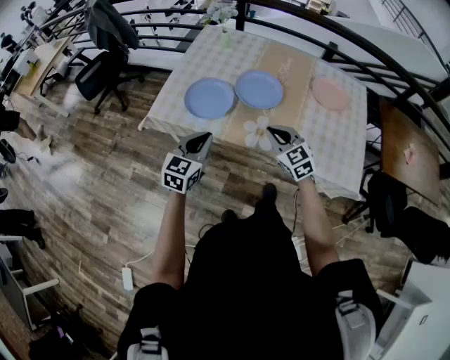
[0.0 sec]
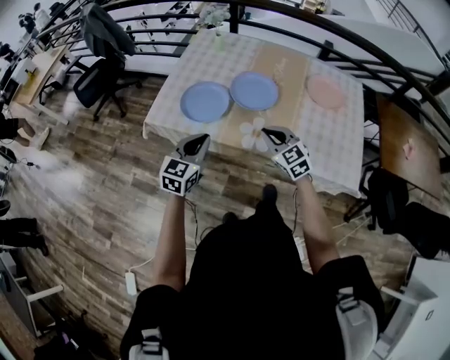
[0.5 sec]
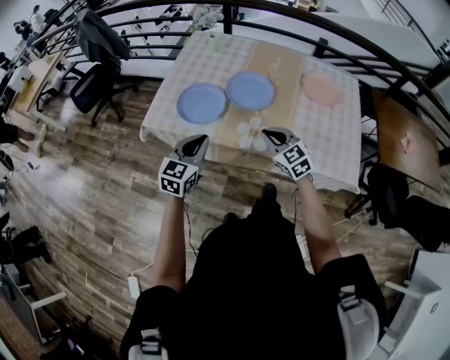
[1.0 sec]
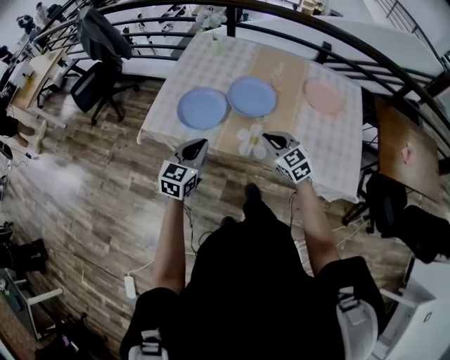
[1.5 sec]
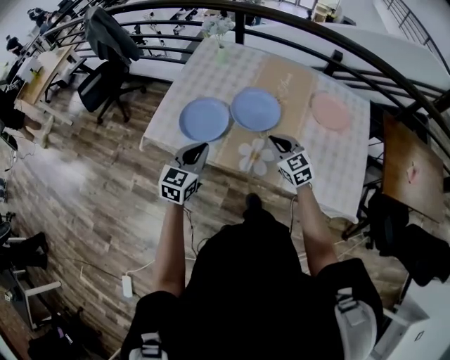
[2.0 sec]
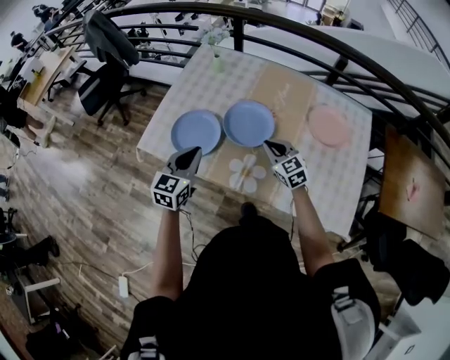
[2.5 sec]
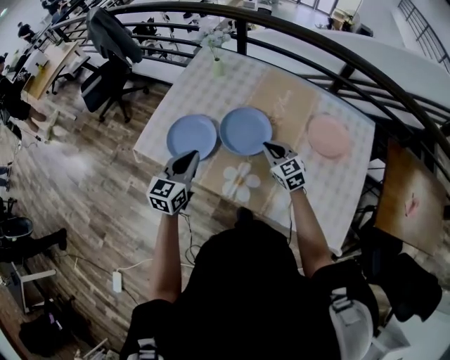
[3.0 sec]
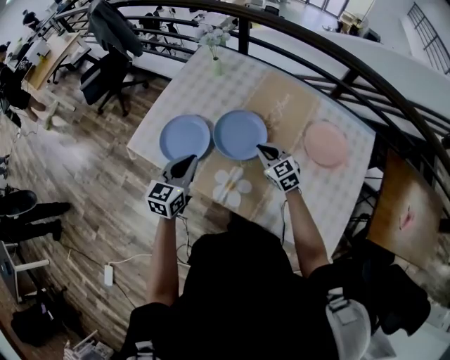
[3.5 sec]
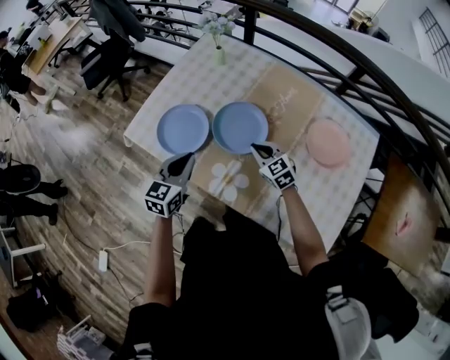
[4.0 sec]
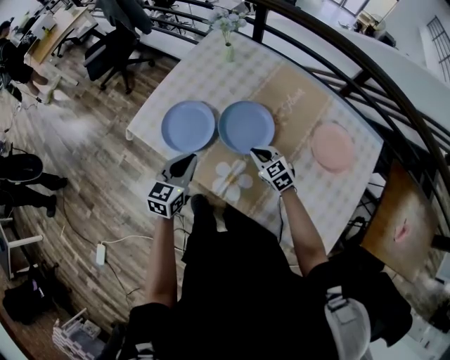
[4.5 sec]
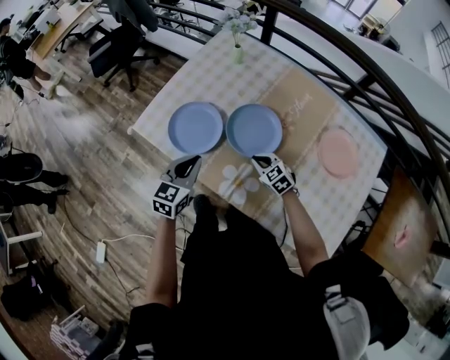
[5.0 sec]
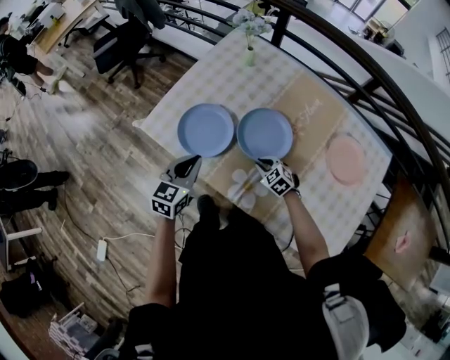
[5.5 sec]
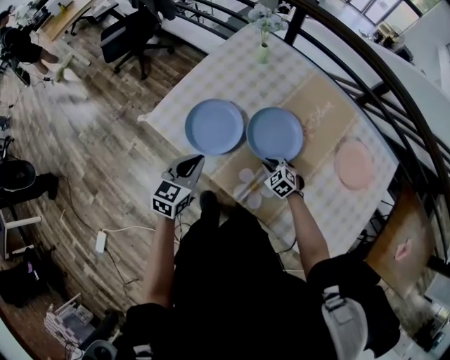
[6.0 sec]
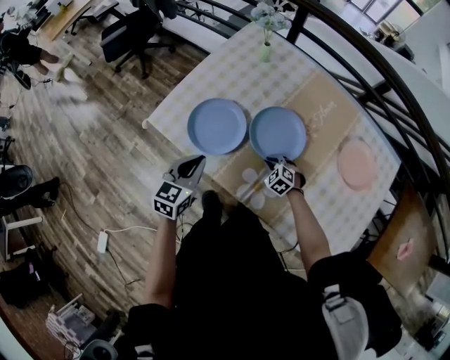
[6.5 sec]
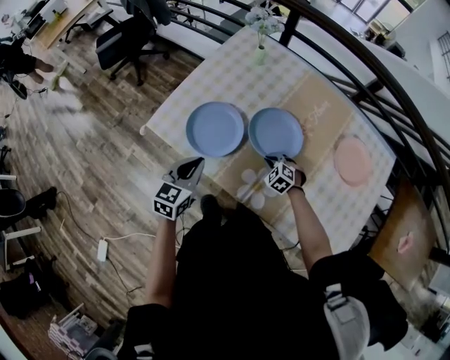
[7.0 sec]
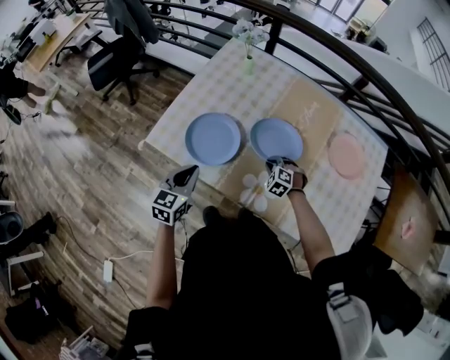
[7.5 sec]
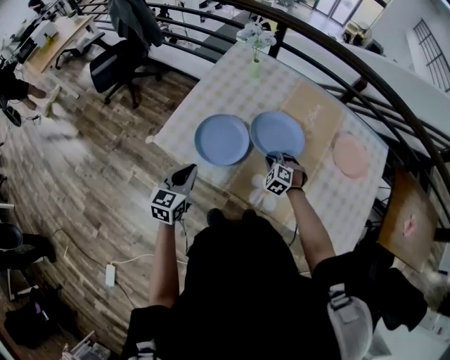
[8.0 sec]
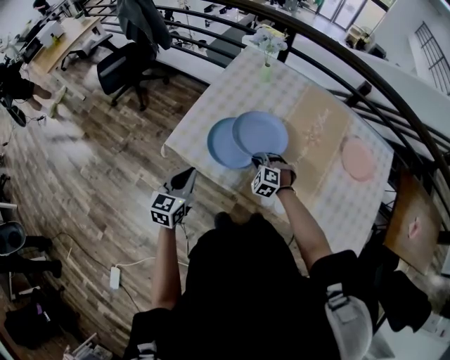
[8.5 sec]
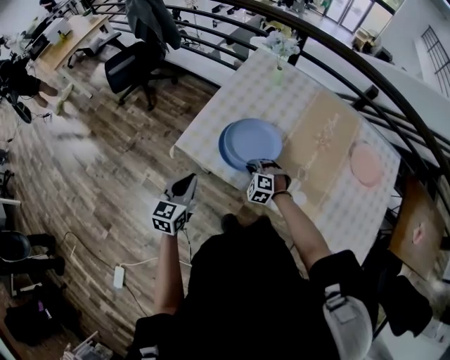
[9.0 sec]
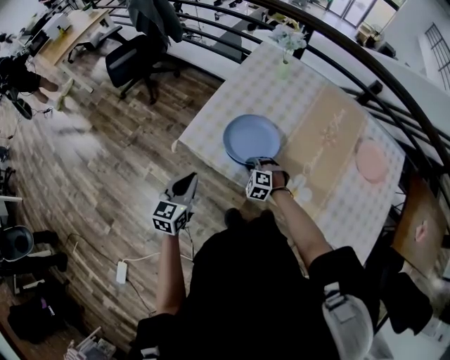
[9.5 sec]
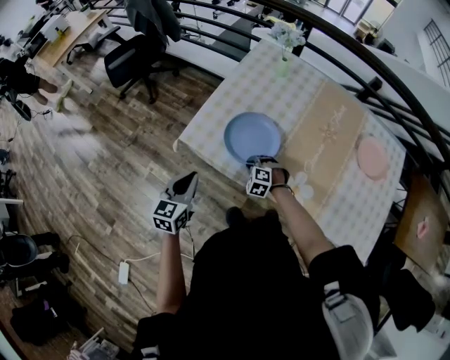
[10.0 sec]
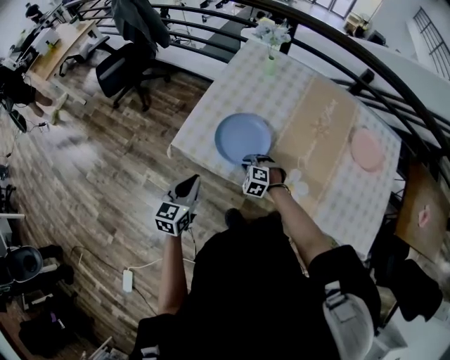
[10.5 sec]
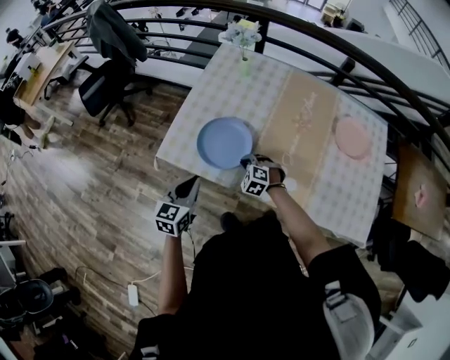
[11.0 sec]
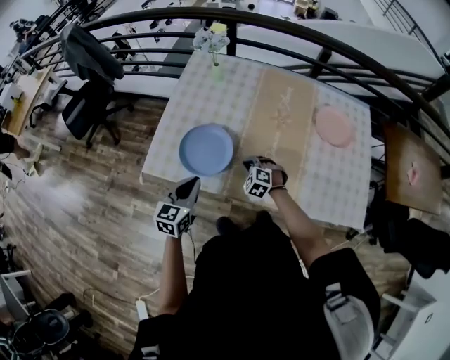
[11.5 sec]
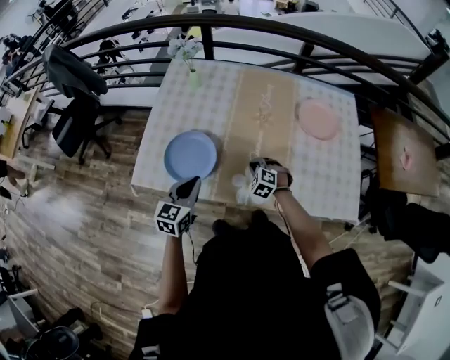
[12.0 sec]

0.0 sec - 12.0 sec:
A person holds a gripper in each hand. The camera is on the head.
0.0 sec - 2.0 sec: The left gripper is displaced forward by roughly 5 cm. The right gripper travels forward and to the right by some 10 cm.
2.0 sec - 4.0 sec: The right gripper travels forward, downward and to the right by some 15 cm. The left gripper heads to the right and forward, covering approximately 15 cm.
4.0 sec - 6.0 sec: The left gripper is displaced to the left by approximately 10 cm, while the right gripper moves downward and to the left, some 15 cm, and changes its angle by approximately 30 degrees.
6.0 sec - 8.0 sec: The left gripper goes some 10 cm to the left. The right gripper is displaced upward by roughly 5 cm, and turns by roughly 20 degrees.
8.0 sec - 10.0 sec: The left gripper is displaced to the left by some 10 cm; the right gripper shifts about 20 cm to the left.
10.0 sec - 12.0 sec: The right gripper changes place by some 25 cm, and rotates some 30 degrees; the left gripper moves approximately 25 cm, and rotates roughly 20 degrees.

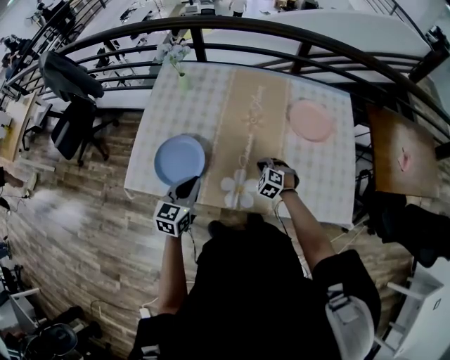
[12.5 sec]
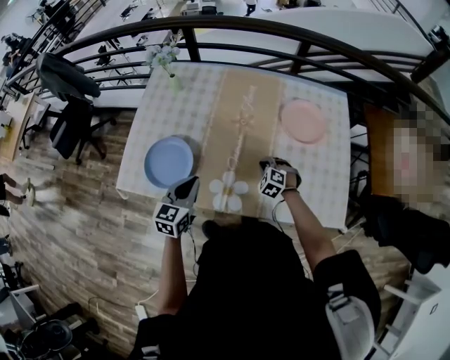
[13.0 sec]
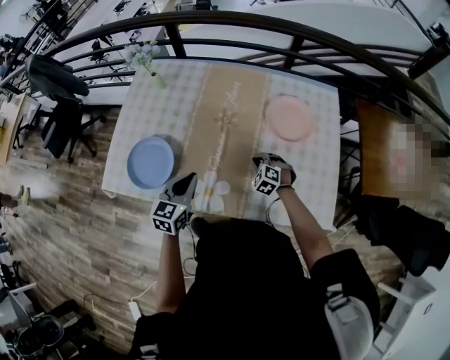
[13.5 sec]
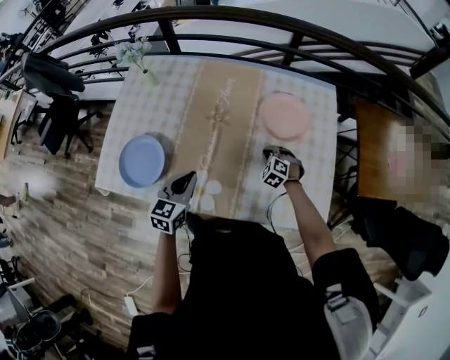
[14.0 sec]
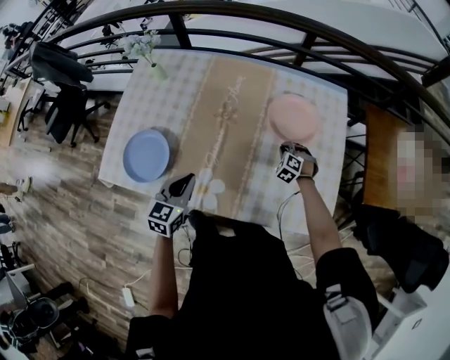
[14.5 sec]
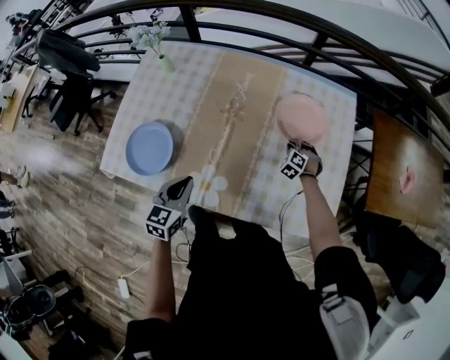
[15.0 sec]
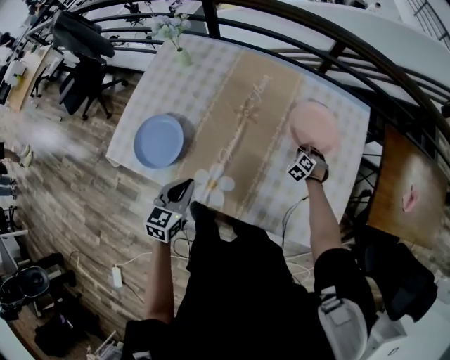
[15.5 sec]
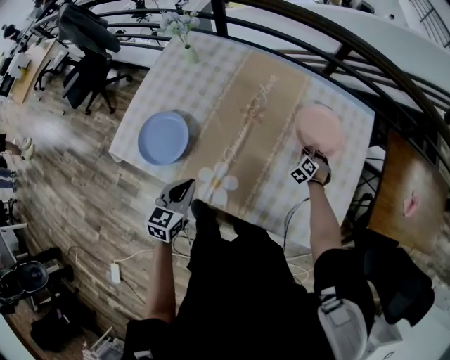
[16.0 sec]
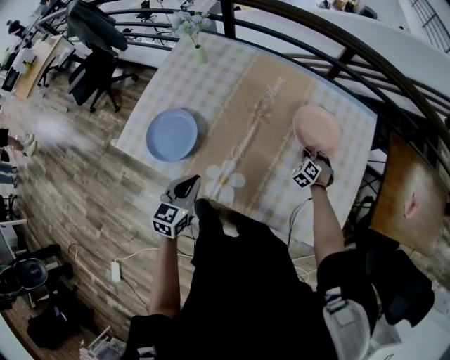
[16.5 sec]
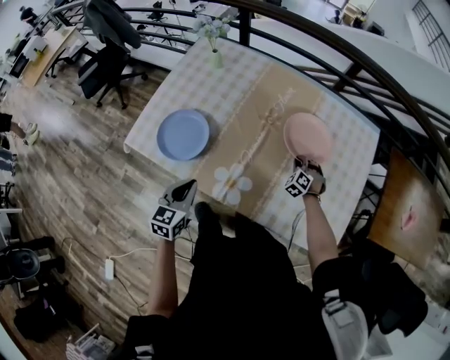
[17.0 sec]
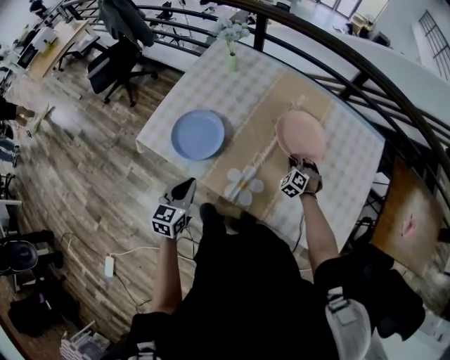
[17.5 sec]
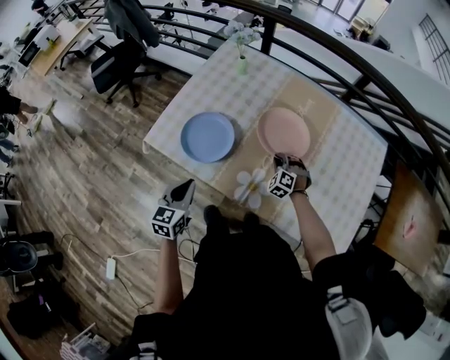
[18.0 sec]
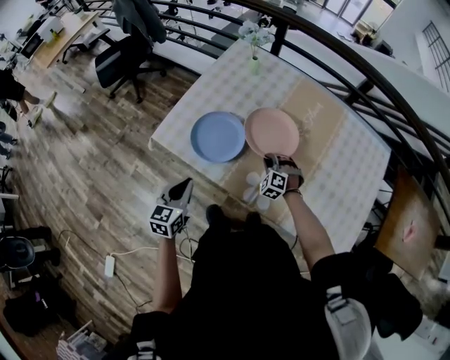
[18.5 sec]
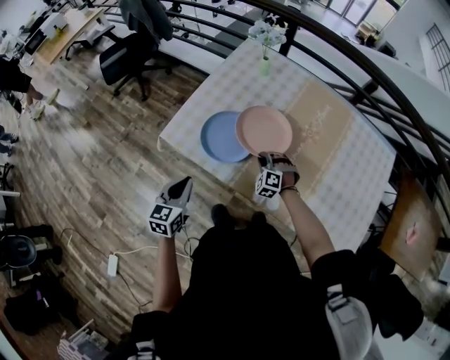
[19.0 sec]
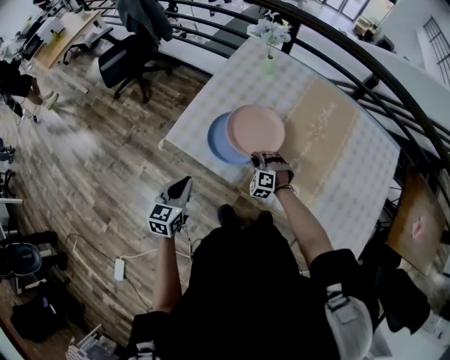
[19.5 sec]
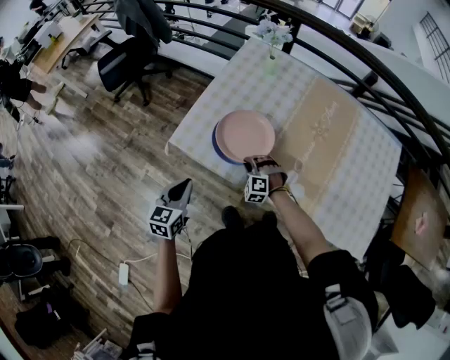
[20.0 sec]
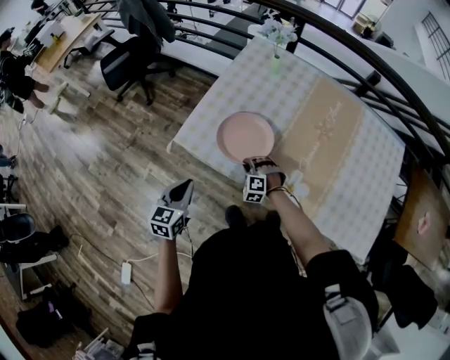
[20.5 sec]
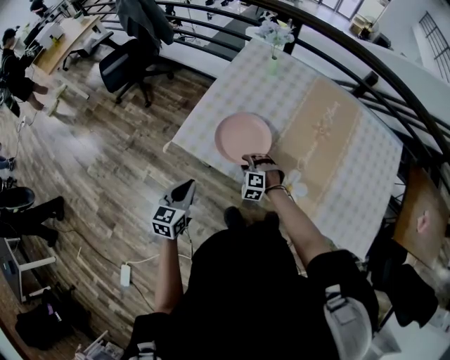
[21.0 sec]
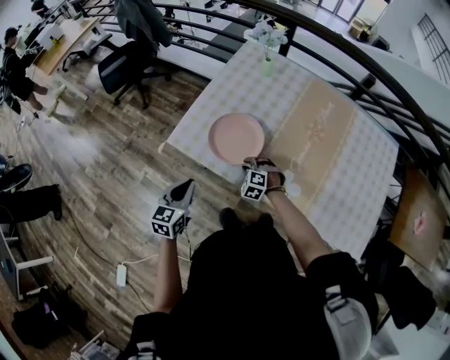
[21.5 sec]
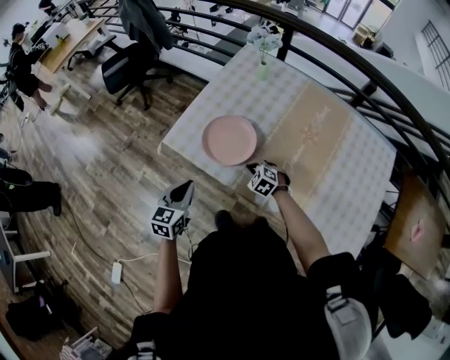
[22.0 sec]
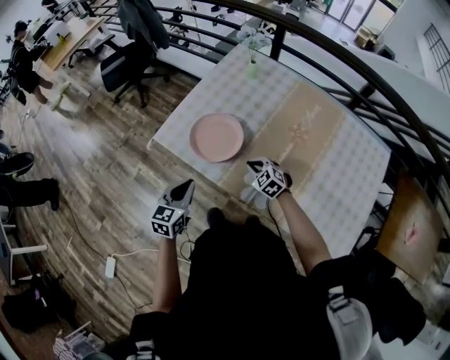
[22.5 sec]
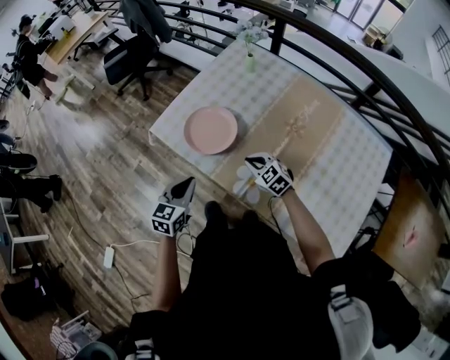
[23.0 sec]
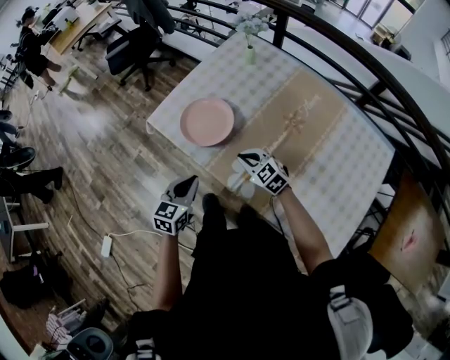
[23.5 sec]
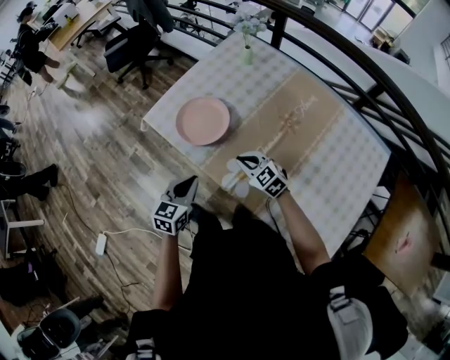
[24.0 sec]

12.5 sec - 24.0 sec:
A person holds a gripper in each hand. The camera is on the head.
12.5 sec - 14.5 sec: The left gripper moves to the right, roughly 15 cm; the right gripper shifts some 30 cm to the right and forward.
14.5 sec - 16.5 sec: The left gripper is displaced backward and to the left by some 10 cm.
16.5 sec - 18.5 sec: The left gripper shifts about 20 cm to the left. Meanwhile the right gripper is displaced to the left by approximately 40 cm, and turns by about 30 degrees.
18.5 sec - 20.0 sec: The left gripper heads to the left, covering about 10 cm. Meanwhile the right gripper moves to the left, some 20 cm.
20.0 sec - 22.0 sec: Both grippers travel together to the right, approximately 5 cm. The right gripper swivels about 30 degrees, and opens and closes again.
22.0 sec - 24.0 sec: The right gripper heads upward, to the right and backward, covering some 15 cm, and turns by about 30 degrees. Meanwhile the left gripper moves to the right and backward, roughly 20 cm.

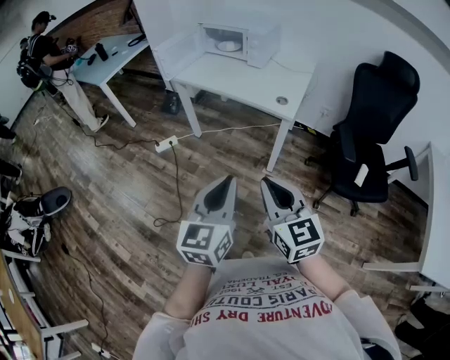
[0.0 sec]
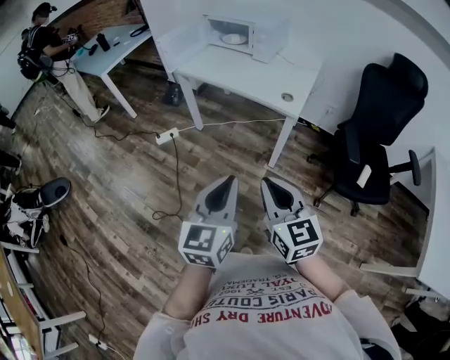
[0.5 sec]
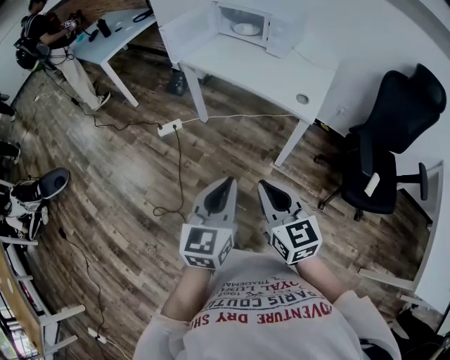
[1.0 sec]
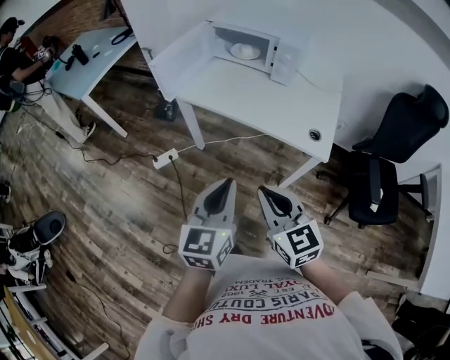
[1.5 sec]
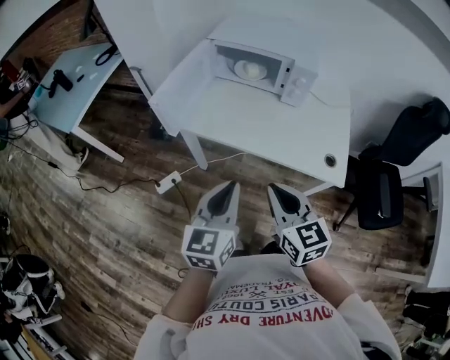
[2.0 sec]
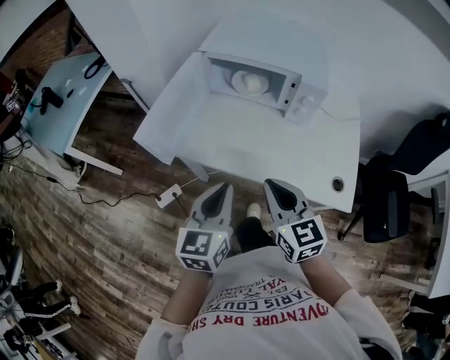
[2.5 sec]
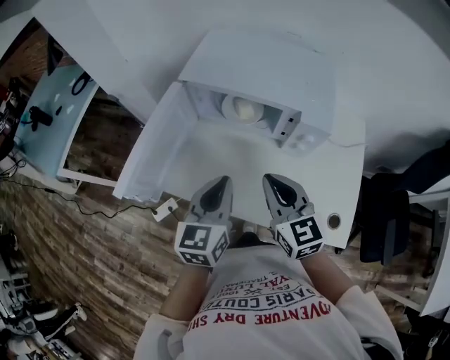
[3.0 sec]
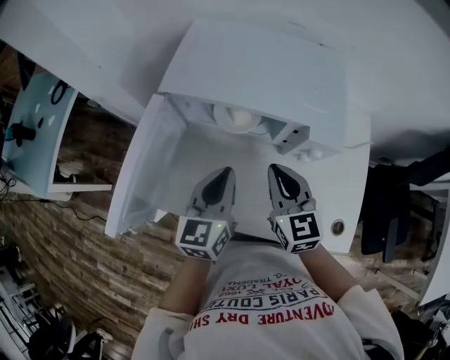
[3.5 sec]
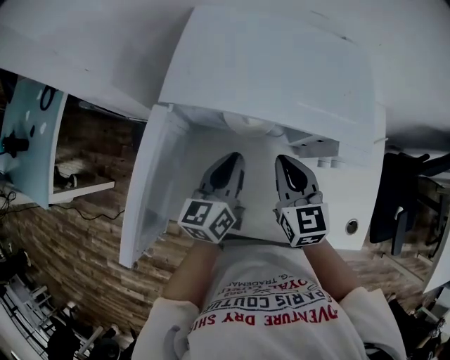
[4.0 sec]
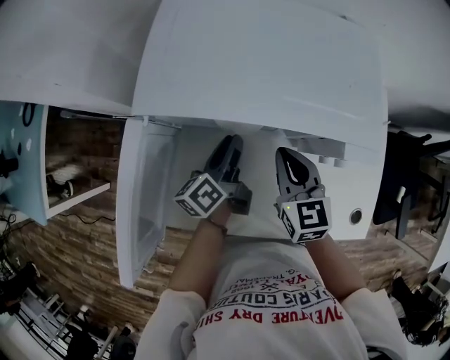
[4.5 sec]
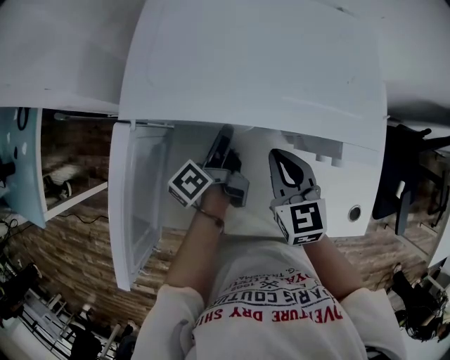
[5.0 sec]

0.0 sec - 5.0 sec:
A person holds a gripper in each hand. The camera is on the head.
0.0 sec - 2.5 sec: Both grippers are carried forward, approximately 60 cm.
2.5 sec - 5.0 sec: The right gripper shifts some 30 cm forward, and swivels roughly 20 degrees, while the left gripper shifts about 40 cm forward and downward, twists some 70 degrees counterclockwise, seen from behind, and opens its fingers.
